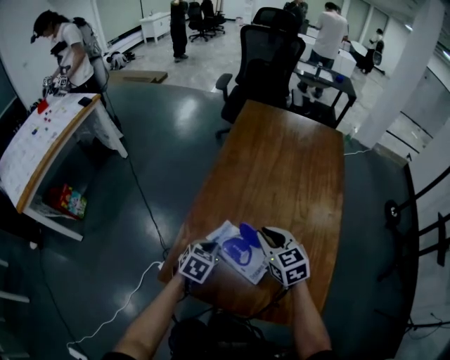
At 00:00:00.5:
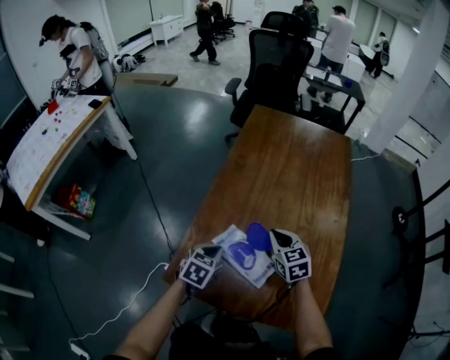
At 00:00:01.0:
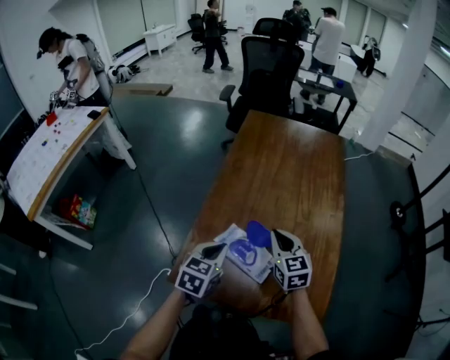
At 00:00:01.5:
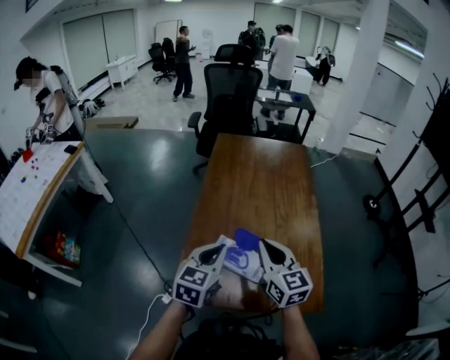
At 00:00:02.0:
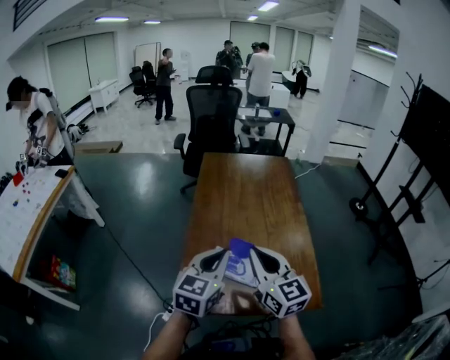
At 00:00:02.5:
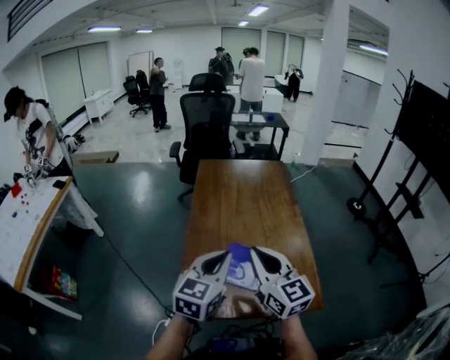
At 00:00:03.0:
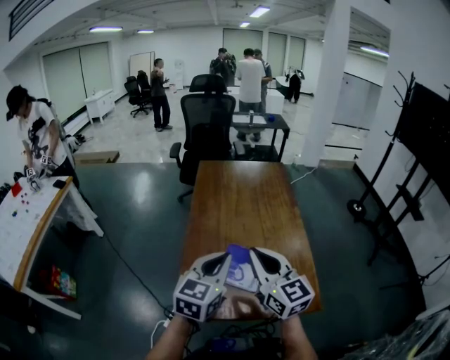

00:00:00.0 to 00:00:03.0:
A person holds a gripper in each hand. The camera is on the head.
00:00:00.0 to 00:00:01.5: The left gripper travels upward by roughly 20 cm, and angles its fingers upward, by some 30 degrees, while the right gripper shifts about 15 cm upward and backward, and rotates roughly 30 degrees.
00:00:01.5 to 00:00:03.0: Both grippers travel together upward, roughly 10 cm.

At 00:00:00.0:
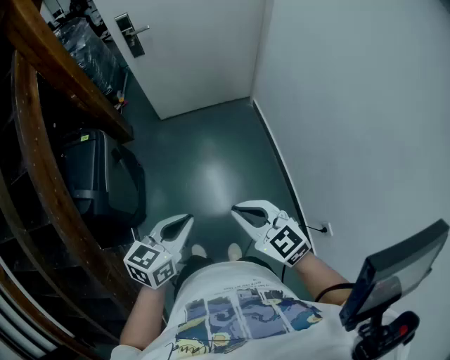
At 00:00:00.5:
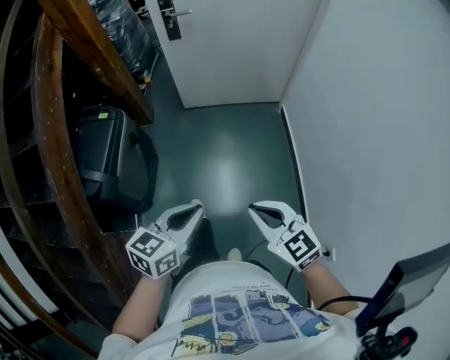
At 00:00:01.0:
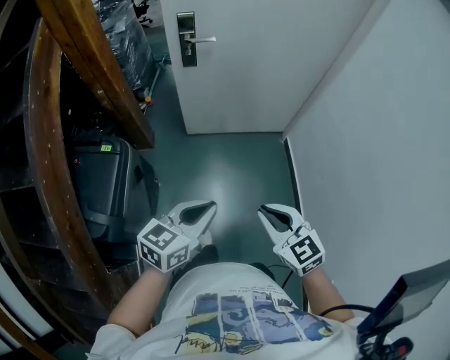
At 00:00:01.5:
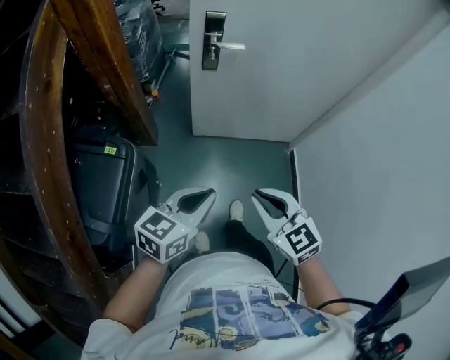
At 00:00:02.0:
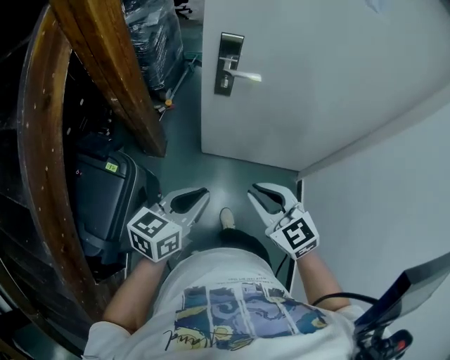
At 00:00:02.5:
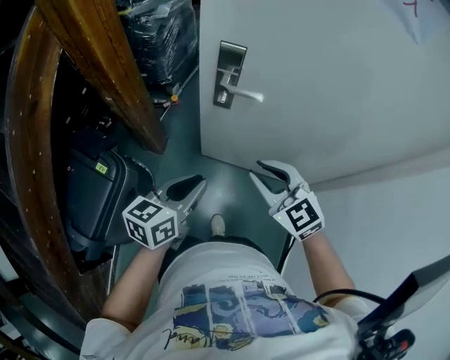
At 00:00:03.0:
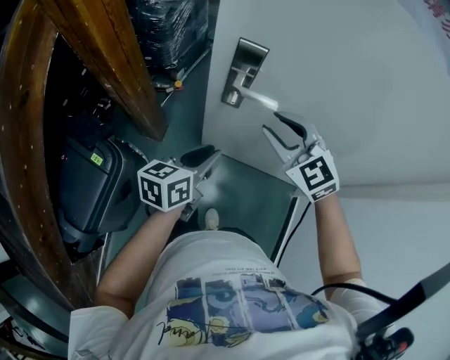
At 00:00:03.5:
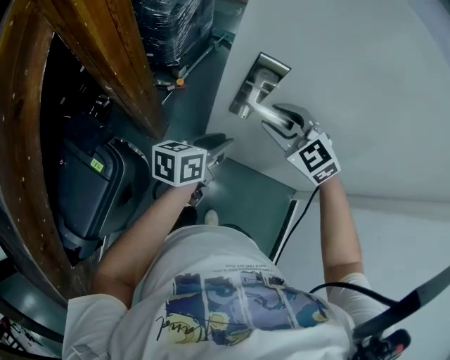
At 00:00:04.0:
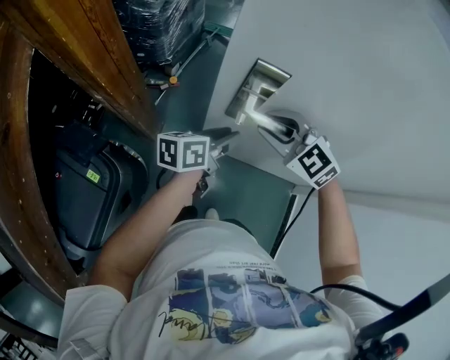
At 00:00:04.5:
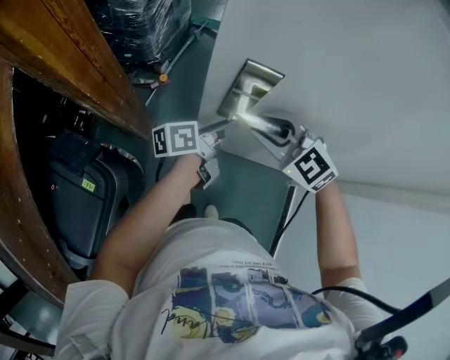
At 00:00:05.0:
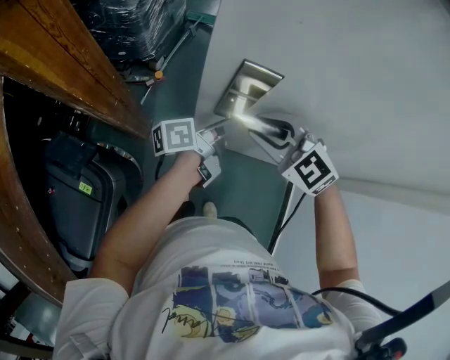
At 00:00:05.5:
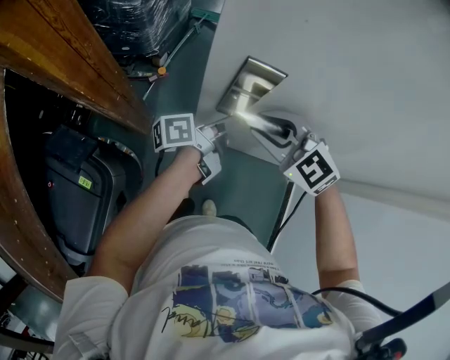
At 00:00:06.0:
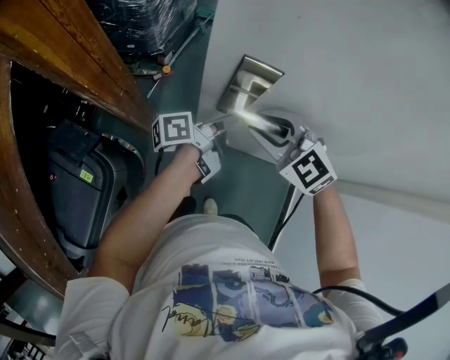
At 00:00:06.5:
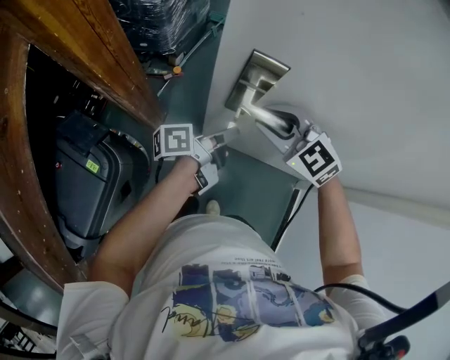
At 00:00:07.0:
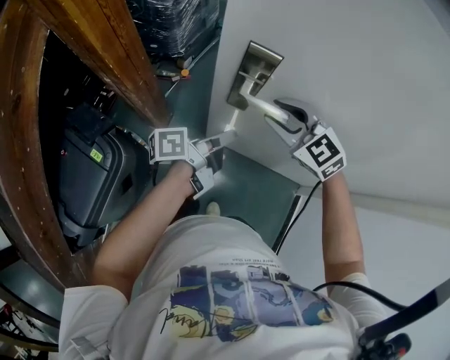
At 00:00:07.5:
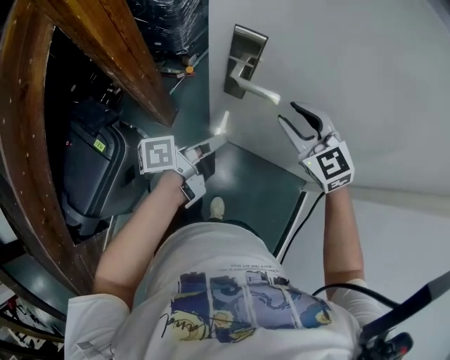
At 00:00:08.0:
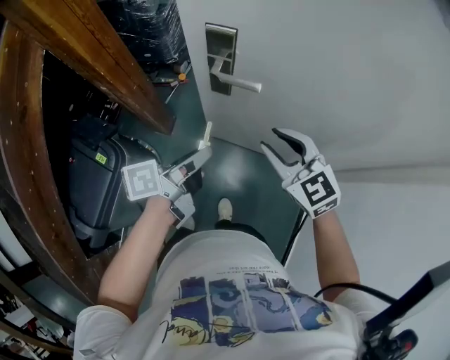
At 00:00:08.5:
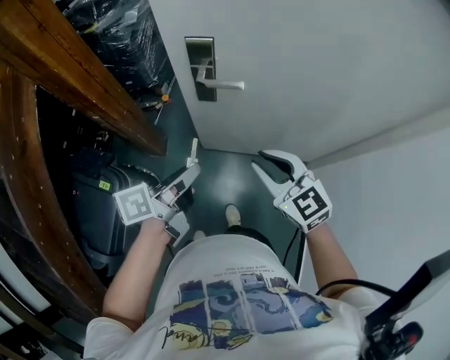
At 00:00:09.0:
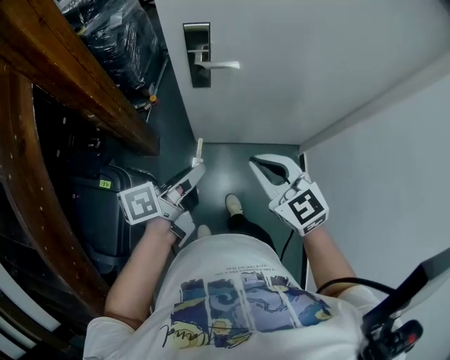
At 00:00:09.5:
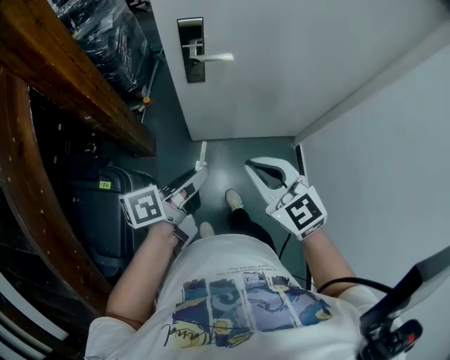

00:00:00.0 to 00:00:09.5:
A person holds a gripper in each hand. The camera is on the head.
00:00:00.0 to 00:00:02.0: The two grippers travel together, forward, about 60 cm.
00:00:02.0 to 00:00:04.0: Both grippers move forward, some 35 cm. The left gripper turns by some 30 degrees, and opens; the right gripper turns by roughly 30 degrees.
00:00:04.0 to 00:00:05.5: The left gripper moves some 5 cm, turns by about 30 degrees, and closes its fingers.
00:00:05.5 to 00:00:07.5: The right gripper travels to the right by about 10 cm, while the left gripper goes roughly 15 cm backward.
00:00:07.5 to 00:00:09.5: The right gripper moves backward, approximately 30 cm, swivels some 30 degrees, and closes its fingers. The left gripper heads backward, covering approximately 20 cm, and changes its angle by about 30 degrees.

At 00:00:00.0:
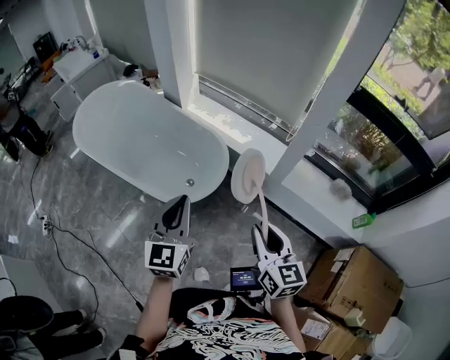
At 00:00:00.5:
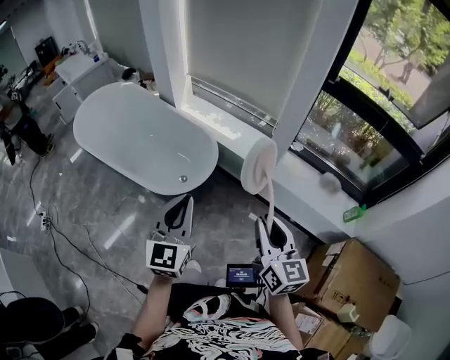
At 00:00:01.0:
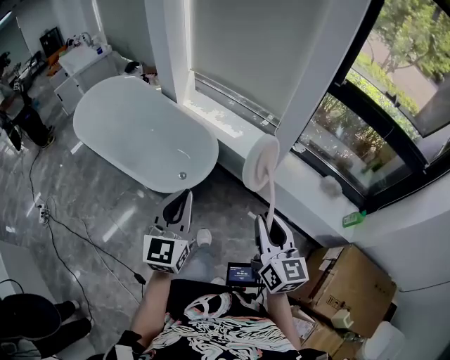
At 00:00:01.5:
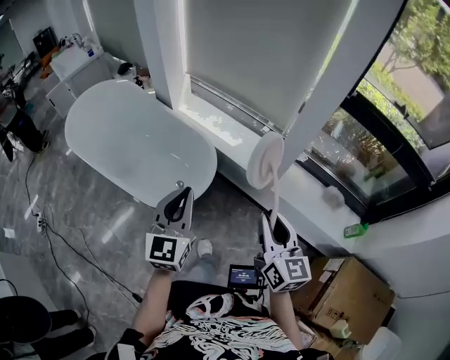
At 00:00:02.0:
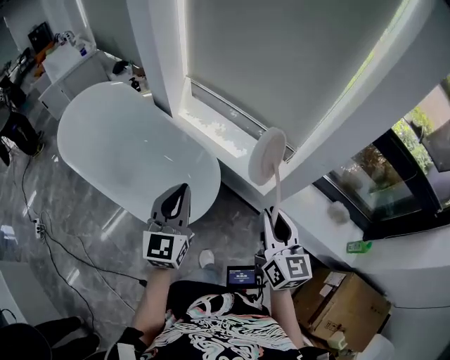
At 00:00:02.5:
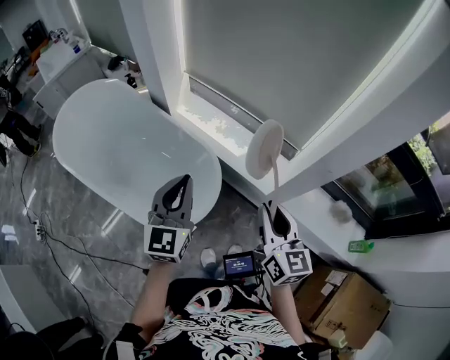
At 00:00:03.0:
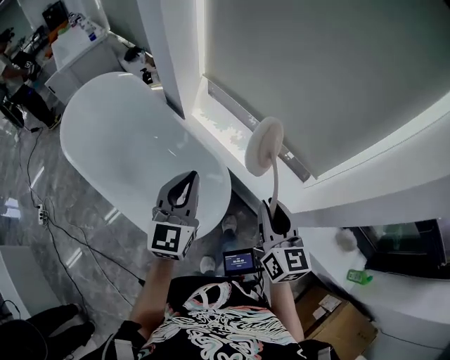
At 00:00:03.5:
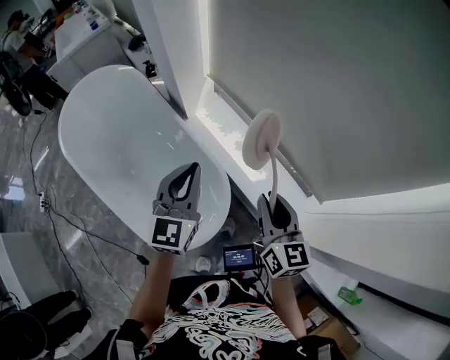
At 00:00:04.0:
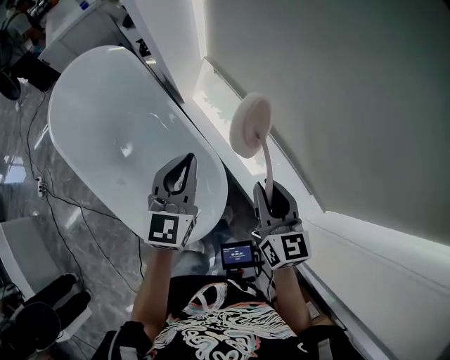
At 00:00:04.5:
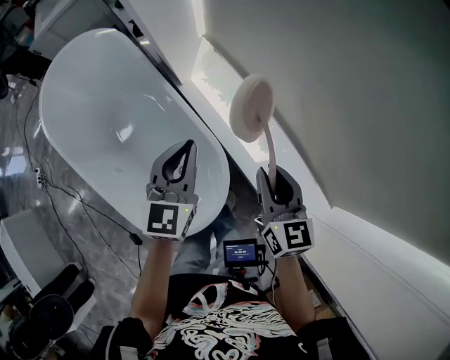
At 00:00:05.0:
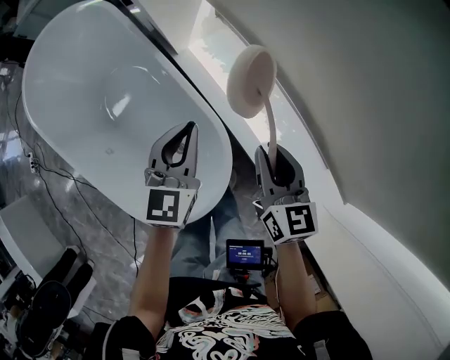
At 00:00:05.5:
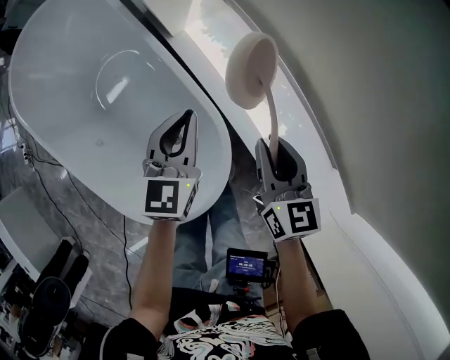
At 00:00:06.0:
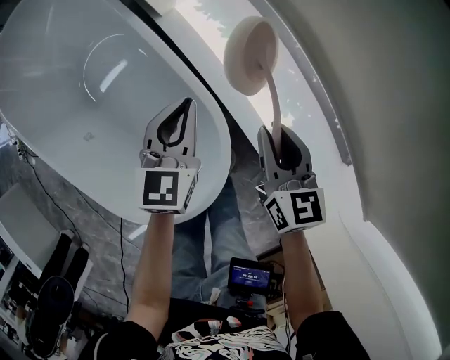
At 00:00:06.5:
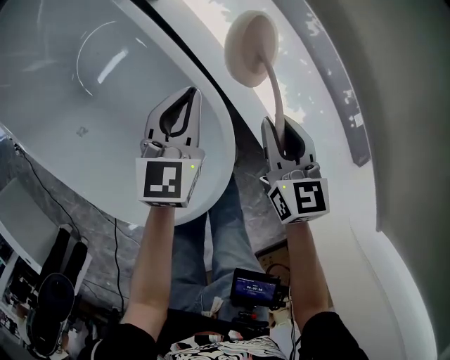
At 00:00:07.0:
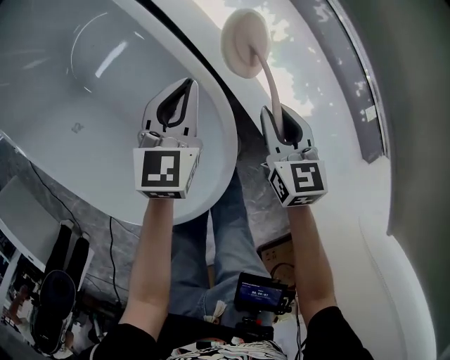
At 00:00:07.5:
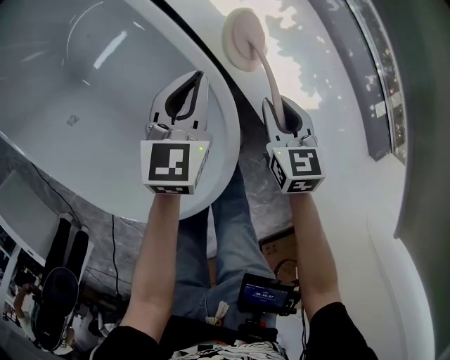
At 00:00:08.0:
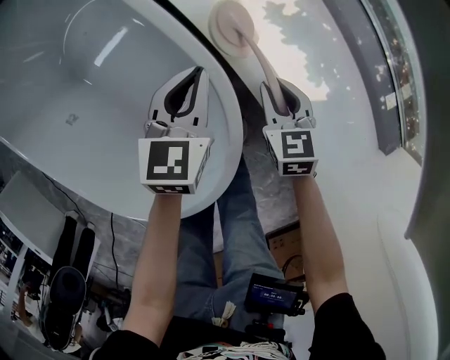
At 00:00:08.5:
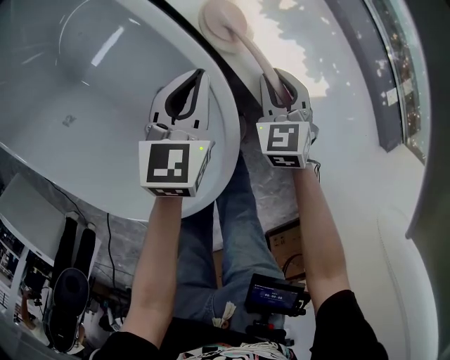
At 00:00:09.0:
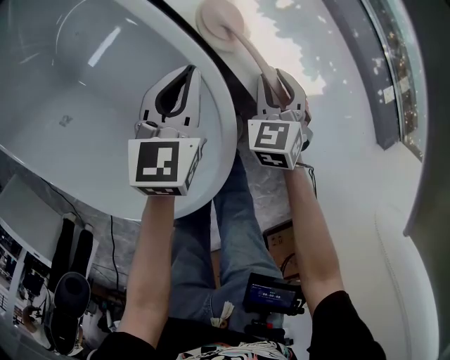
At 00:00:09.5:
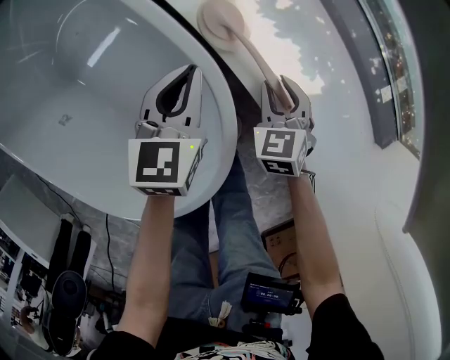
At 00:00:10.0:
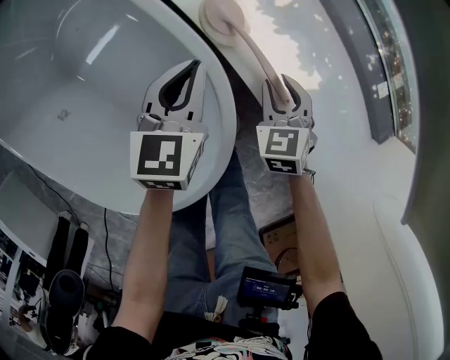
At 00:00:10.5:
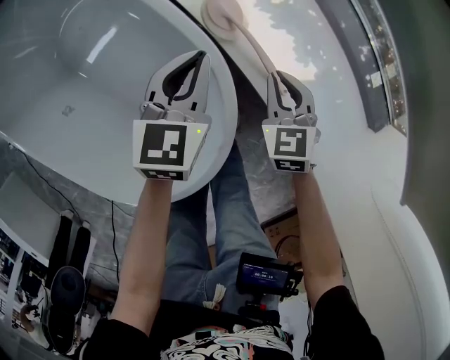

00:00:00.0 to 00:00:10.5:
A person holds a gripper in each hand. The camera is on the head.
00:00:00.0 to 00:00:02.0: Both grippers move forward, about 25 cm.
00:00:02.0 to 00:00:04.0: Both grippers are carried forward, roughly 40 cm. The right gripper changes its angle by approximately 20 degrees.
00:00:04.0 to 00:00:06.5: The two grippers go roughly 40 cm downward.
00:00:06.5 to 00:00:08.5: The right gripper is displaced downward by roughly 20 cm, and swivels roughly 30 degrees. The left gripper travels downward by approximately 10 cm.
00:00:08.5 to 00:00:10.5: Both grippers move upward, roughly 5 cm.

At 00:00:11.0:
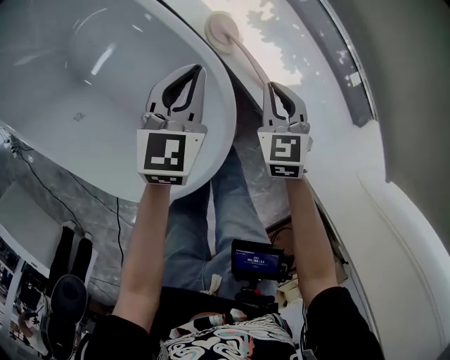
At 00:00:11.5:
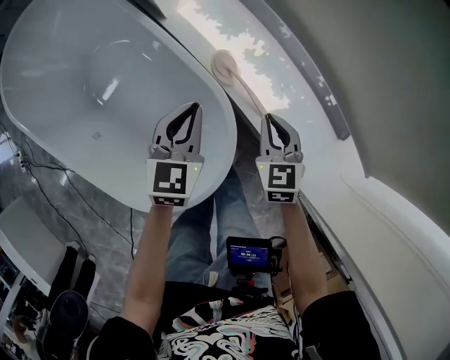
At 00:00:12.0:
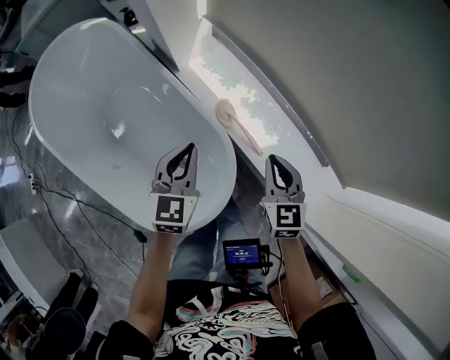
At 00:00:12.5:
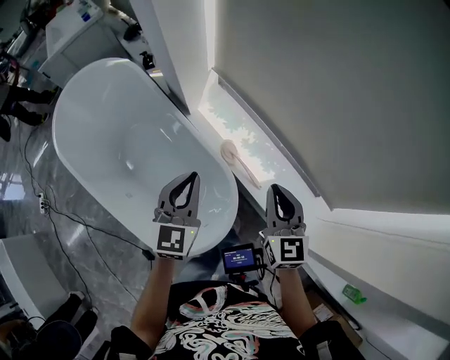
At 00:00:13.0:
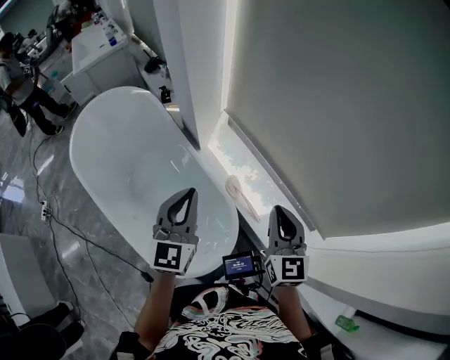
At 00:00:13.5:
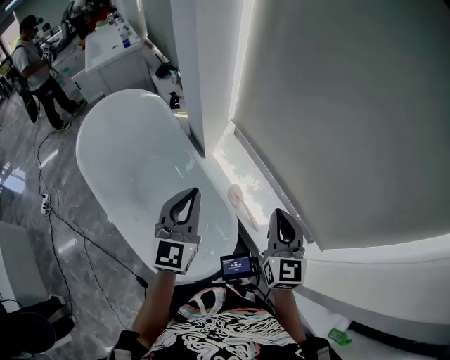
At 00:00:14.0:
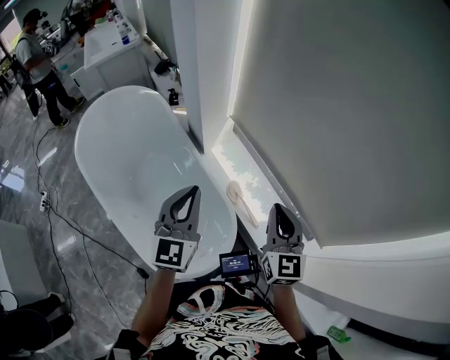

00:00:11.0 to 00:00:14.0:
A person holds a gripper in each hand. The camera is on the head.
00:00:11.0 to 00:00:12.5: The grippers both shift upward by approximately 40 cm. The right gripper turns by some 30 degrees.
00:00:12.5 to 00:00:14.0: Both grippers travel together upward, roughly 10 cm.
